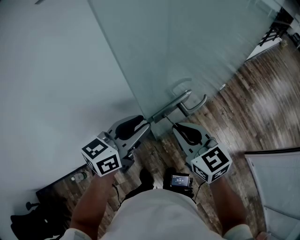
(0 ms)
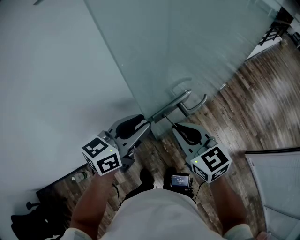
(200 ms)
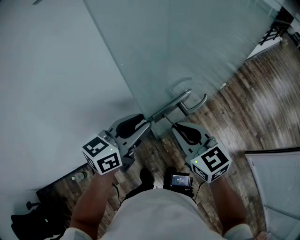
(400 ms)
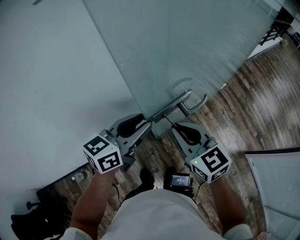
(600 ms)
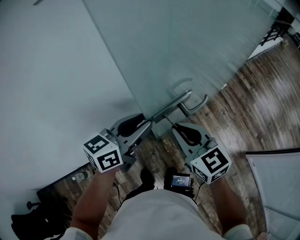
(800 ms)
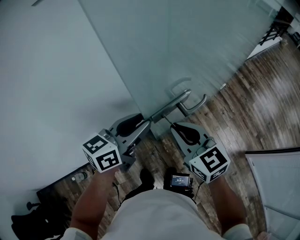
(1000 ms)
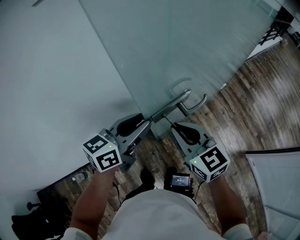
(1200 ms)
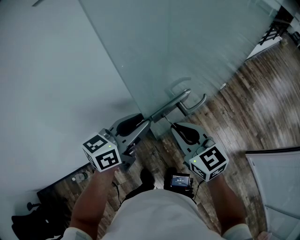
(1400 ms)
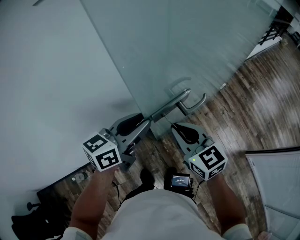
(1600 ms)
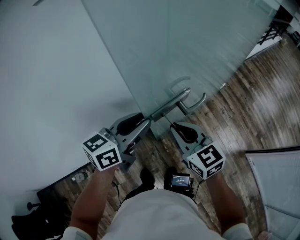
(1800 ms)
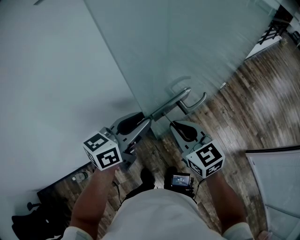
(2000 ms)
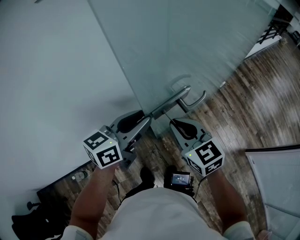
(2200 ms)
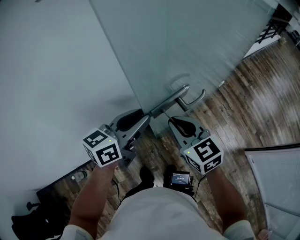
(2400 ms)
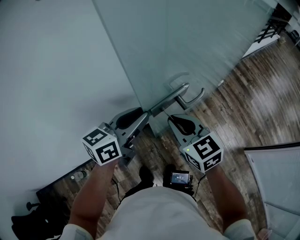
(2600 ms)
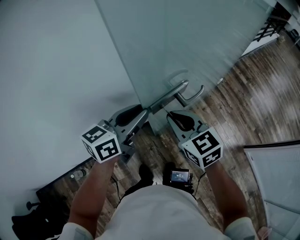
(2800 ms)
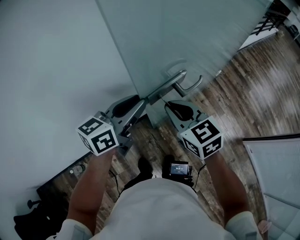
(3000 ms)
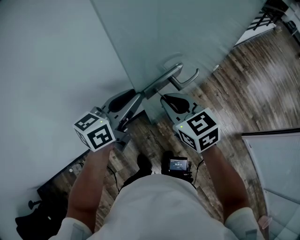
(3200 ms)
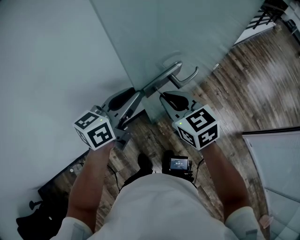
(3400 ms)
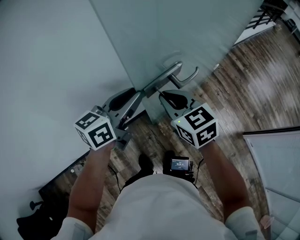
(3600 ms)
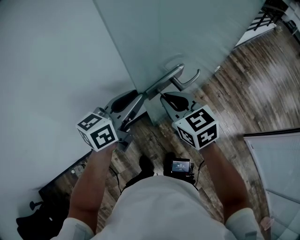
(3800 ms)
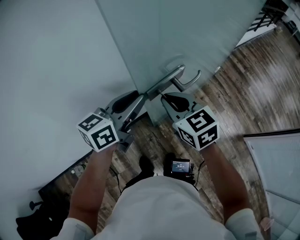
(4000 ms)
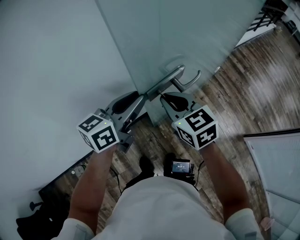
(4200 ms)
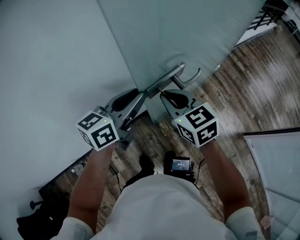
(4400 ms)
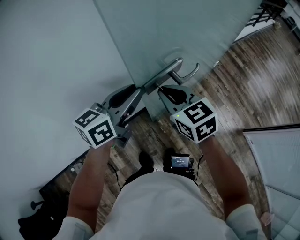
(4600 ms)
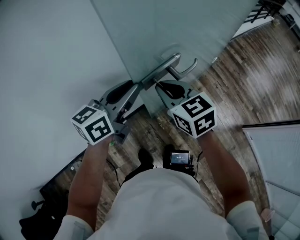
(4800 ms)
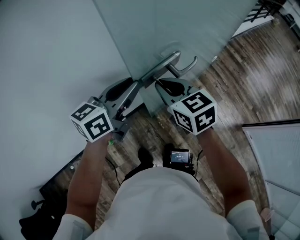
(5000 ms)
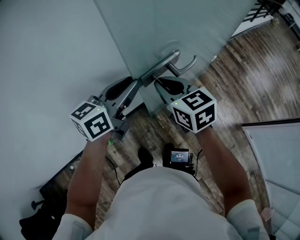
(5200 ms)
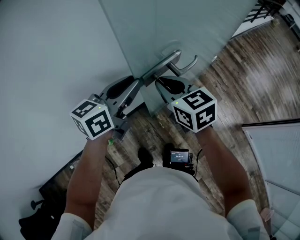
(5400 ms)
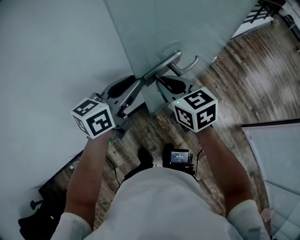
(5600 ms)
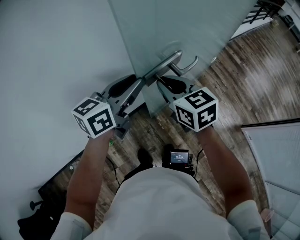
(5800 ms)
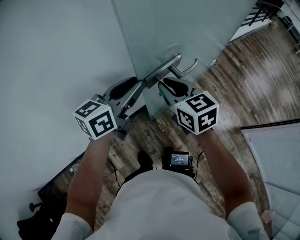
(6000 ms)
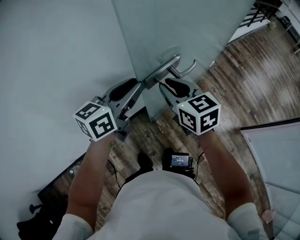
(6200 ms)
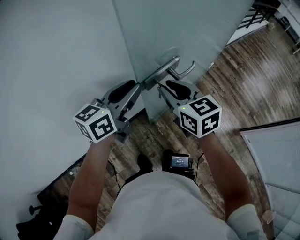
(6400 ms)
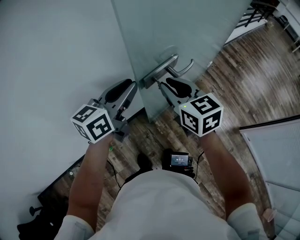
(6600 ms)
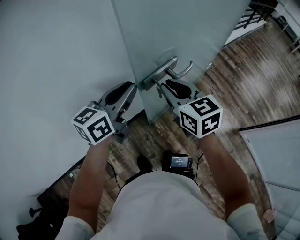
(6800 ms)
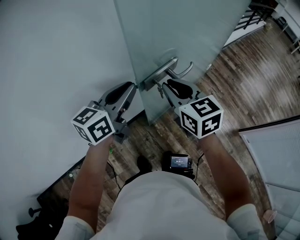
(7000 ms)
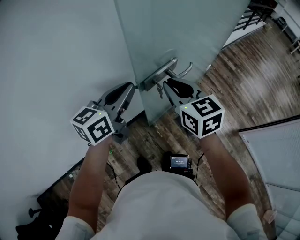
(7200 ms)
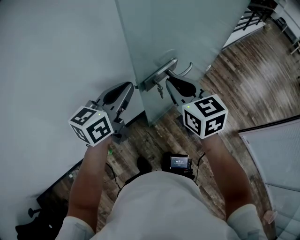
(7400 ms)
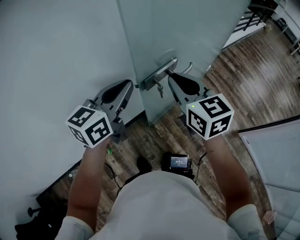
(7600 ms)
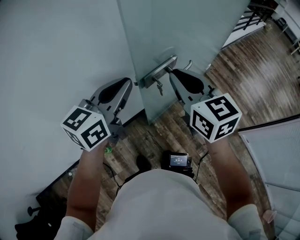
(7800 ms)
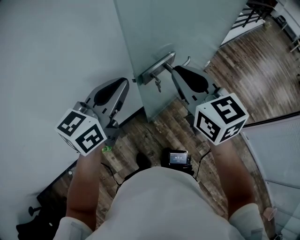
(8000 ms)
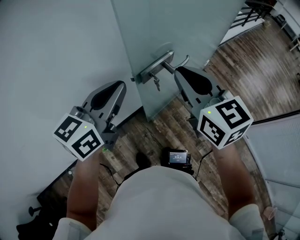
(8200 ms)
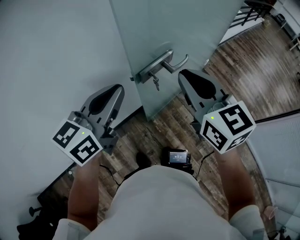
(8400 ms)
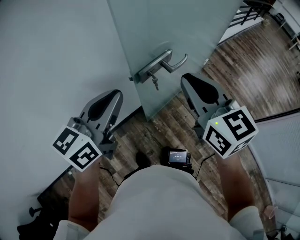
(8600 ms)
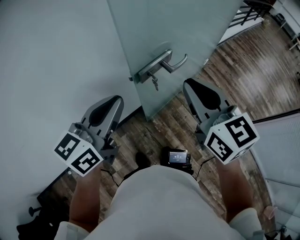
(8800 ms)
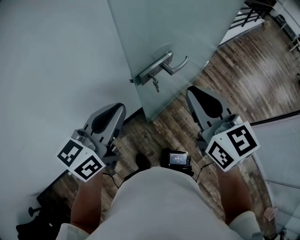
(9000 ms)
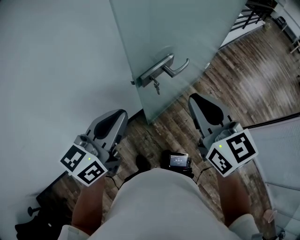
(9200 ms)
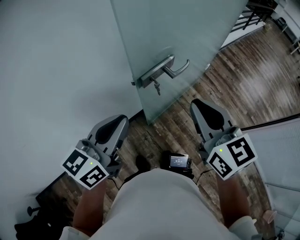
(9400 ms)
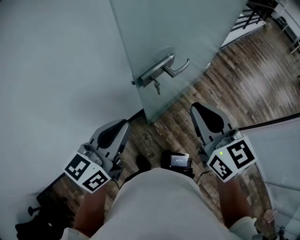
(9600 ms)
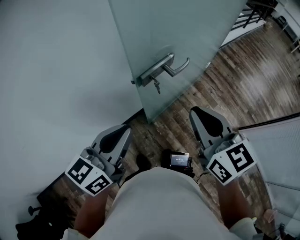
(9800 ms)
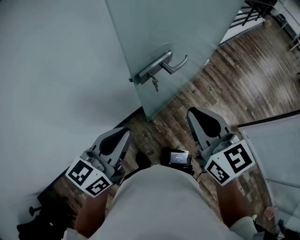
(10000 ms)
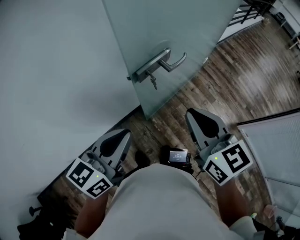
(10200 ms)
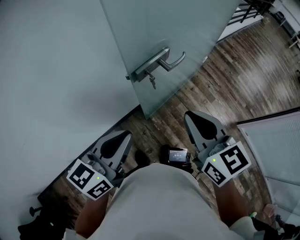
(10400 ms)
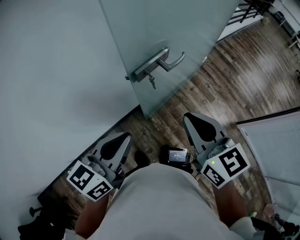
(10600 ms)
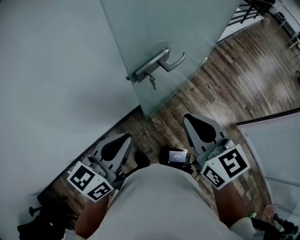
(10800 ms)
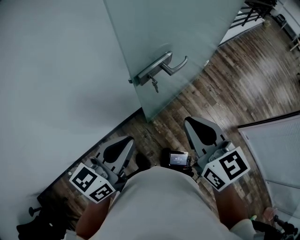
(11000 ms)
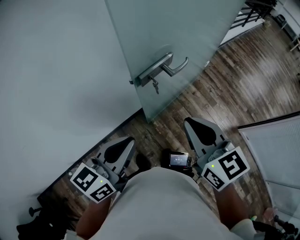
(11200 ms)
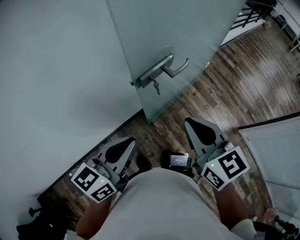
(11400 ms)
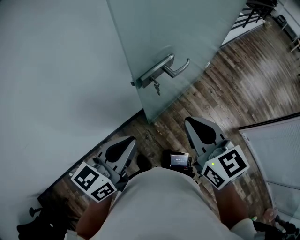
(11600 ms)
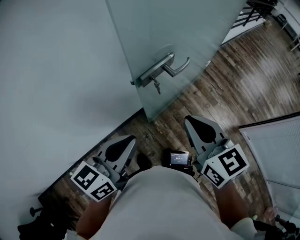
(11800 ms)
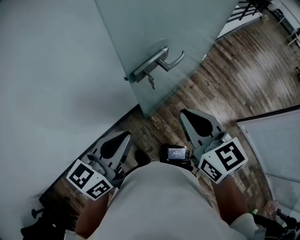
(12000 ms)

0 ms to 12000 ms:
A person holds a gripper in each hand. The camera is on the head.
0 ms to 6000 ms: The grippers stay close to where they were, moving slightly.
6000 ms to 7600 ms: The left gripper ends up some 5 cm from where it was. The right gripper moves upward, about 10 cm.
7600 ms to 9000 ms: The right gripper goes about 10 cm backward and to the right. Meanwhile the left gripper shifts about 10 cm backward.
9000 ms to 10400 ms: Both grippers travel together backward, roughly 5 cm.
10400 ms to 12000 ms: The grippers move only a little.

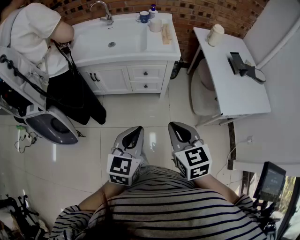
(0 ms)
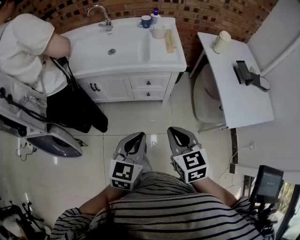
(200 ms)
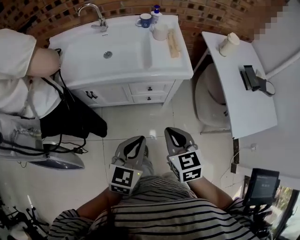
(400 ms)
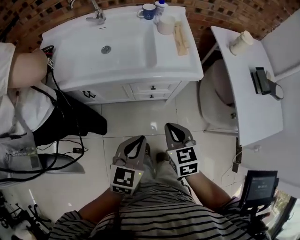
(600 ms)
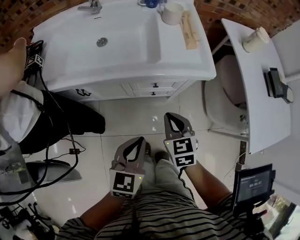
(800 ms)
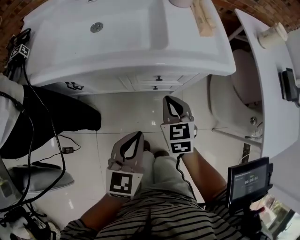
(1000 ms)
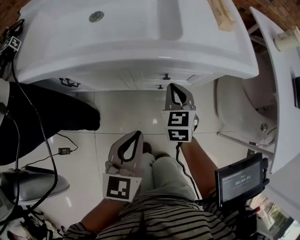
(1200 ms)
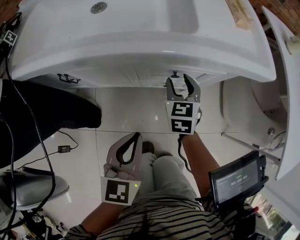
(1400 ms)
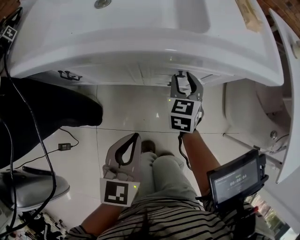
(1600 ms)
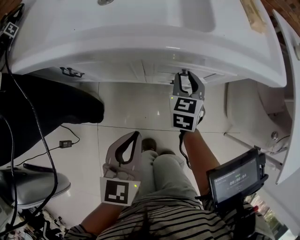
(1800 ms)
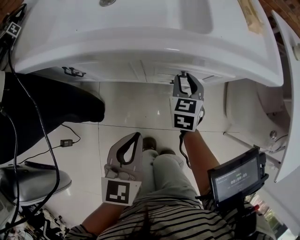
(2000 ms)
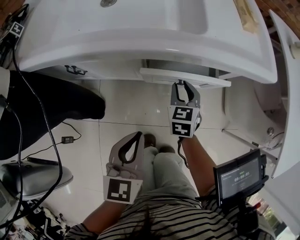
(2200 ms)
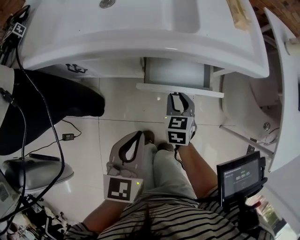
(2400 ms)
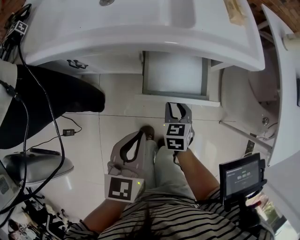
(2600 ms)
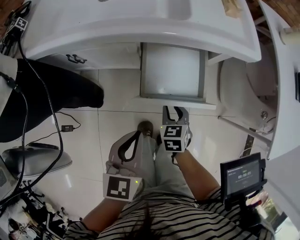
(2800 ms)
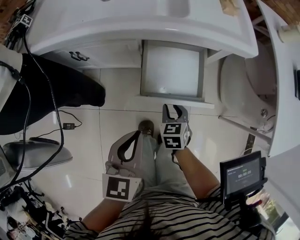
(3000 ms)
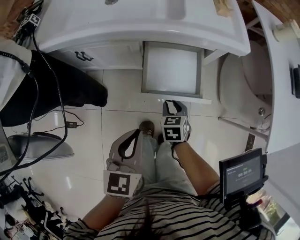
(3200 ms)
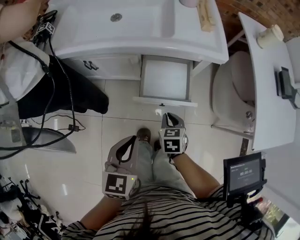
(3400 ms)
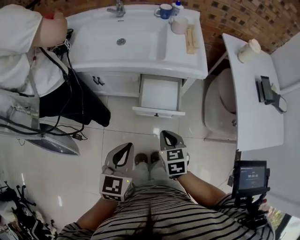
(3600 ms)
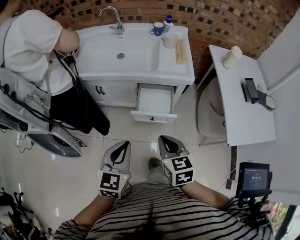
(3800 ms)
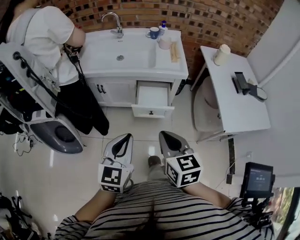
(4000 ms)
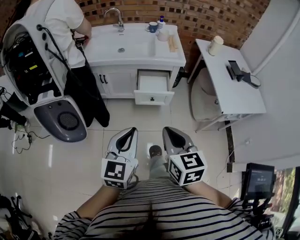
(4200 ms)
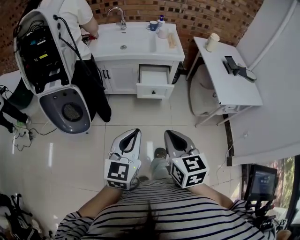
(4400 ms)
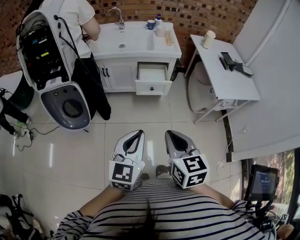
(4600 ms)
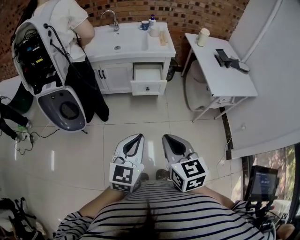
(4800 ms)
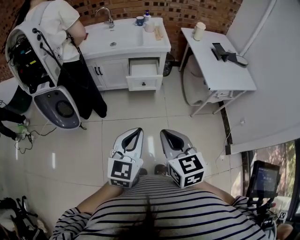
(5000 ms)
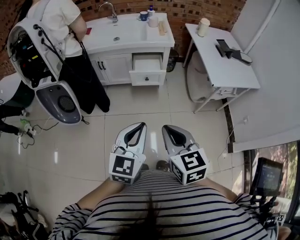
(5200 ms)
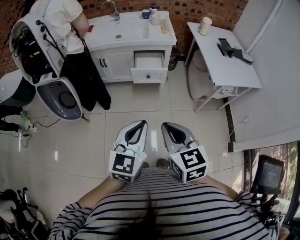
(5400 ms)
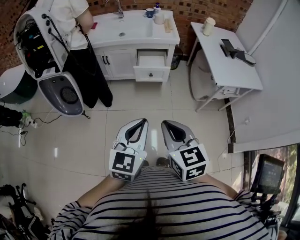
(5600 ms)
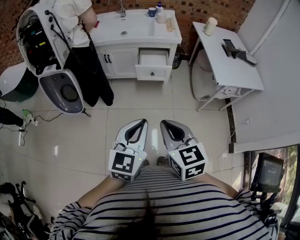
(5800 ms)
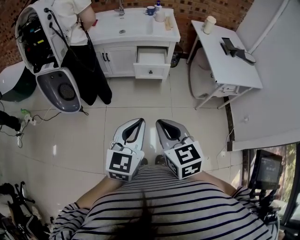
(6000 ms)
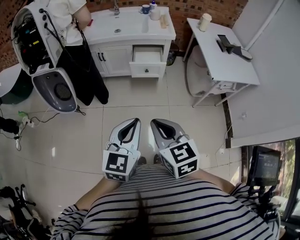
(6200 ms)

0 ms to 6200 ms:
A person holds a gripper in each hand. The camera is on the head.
0 ms to 1600 ms: The right gripper shifts about 60 cm forward and downward, swivels roughly 20 degrees, and opens up. Meanwhile the left gripper travels downward, forward and to the left by roughly 50 cm.
1600 ms to 3200 ms: The left gripper heads backward and upward, covering approximately 15 cm. Meanwhile the right gripper goes about 20 cm backward, and turns by some 20 degrees.
3200 ms to 4600 ms: The right gripper shifts some 70 cm upward and backward, tips its fingers upward by about 30 degrees, and closes its fingers. The left gripper heads backward and upward, covering approximately 50 cm, and swivels approximately 20 degrees.
4600 ms to 6200 ms: The left gripper changes place by roughly 5 cm.

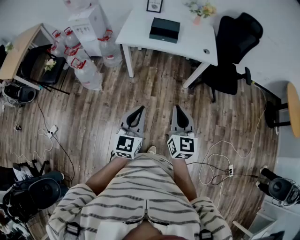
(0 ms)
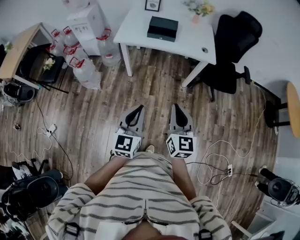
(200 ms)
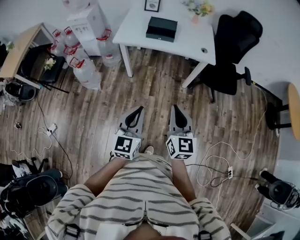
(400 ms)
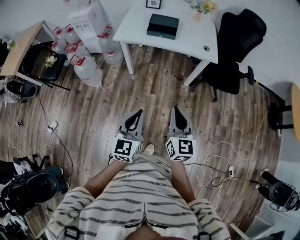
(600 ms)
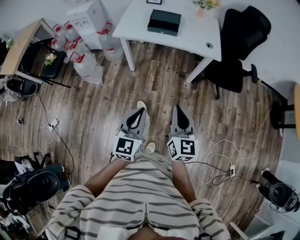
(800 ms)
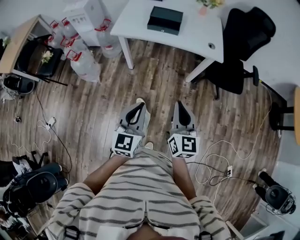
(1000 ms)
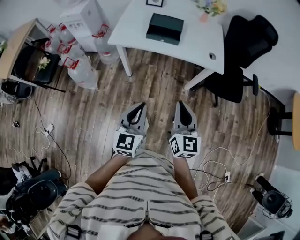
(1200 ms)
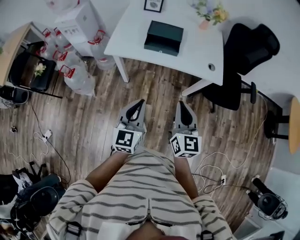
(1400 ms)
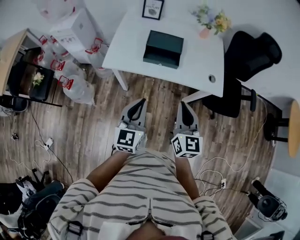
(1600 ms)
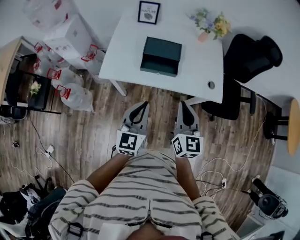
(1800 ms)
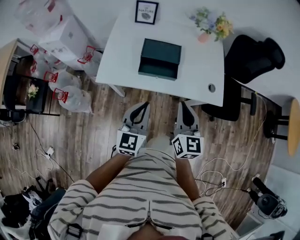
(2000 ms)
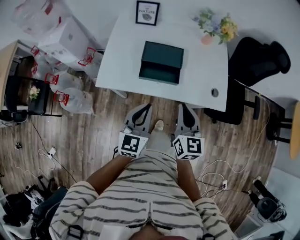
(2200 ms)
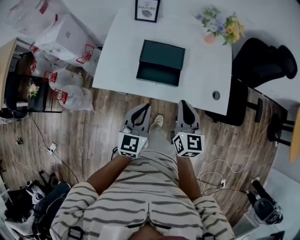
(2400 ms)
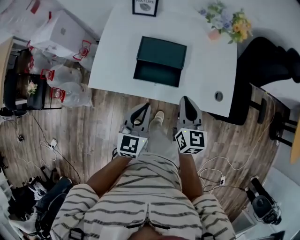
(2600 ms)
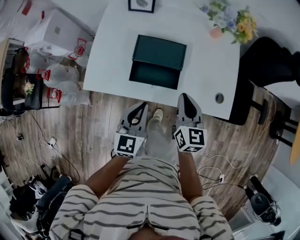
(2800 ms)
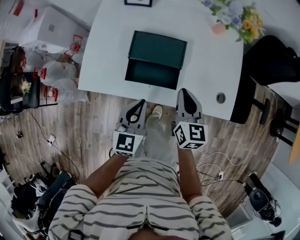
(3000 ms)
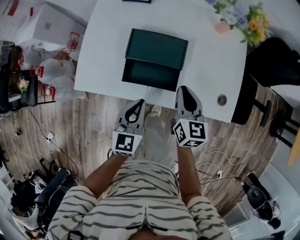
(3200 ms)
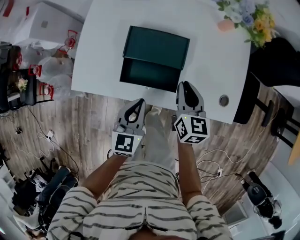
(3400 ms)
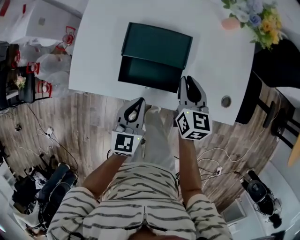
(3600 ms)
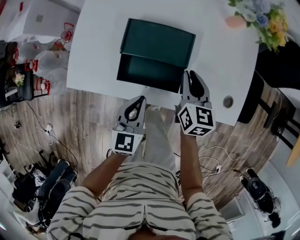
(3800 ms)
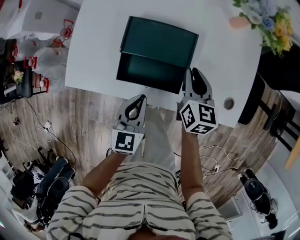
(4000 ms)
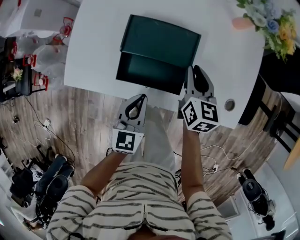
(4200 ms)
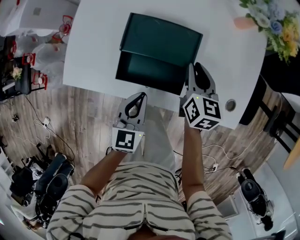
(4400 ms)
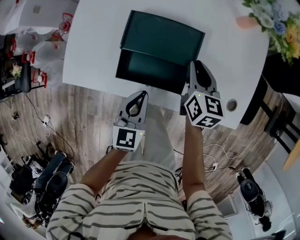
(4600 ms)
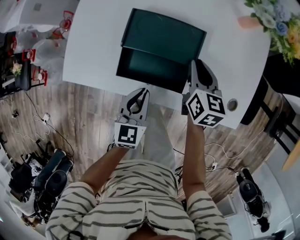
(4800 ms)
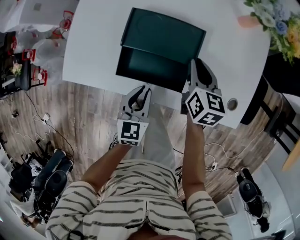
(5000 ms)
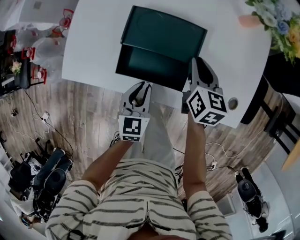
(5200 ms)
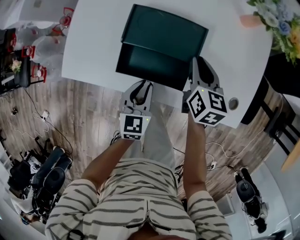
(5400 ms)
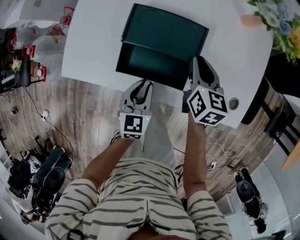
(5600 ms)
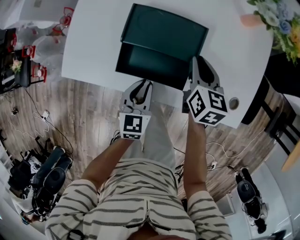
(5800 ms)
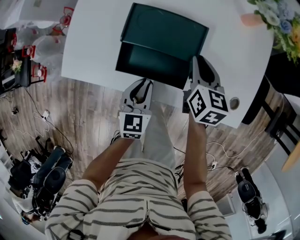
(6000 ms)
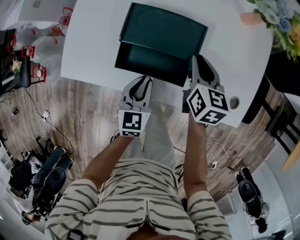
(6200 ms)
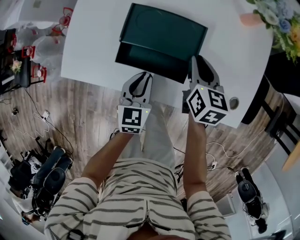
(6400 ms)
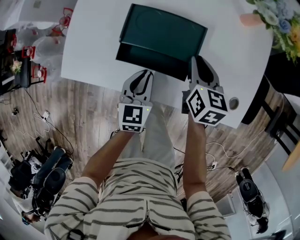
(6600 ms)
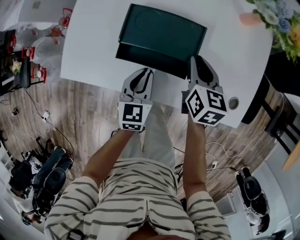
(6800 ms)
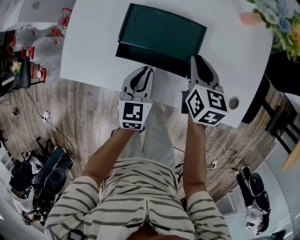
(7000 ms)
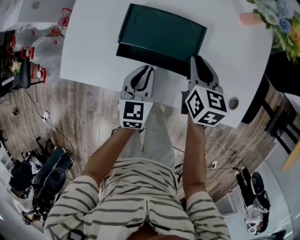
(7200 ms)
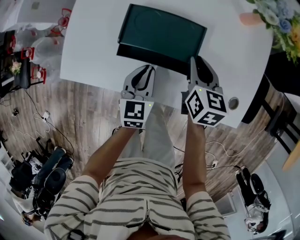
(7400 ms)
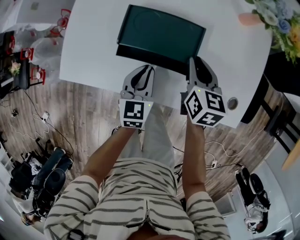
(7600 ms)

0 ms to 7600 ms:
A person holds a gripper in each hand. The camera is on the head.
0 ms to 1600 ms: Both grippers travel together forward, about 35 cm.
1600 ms to 3000 ms: Both grippers move forward and downward, some 30 cm.
3000 ms to 4600 ms: The left gripper is displaced downward by roughly 10 cm. The right gripper is displaced forward and downward by approximately 15 cm.
4600 ms to 6000 ms: The grippers stay close to where they were, moving slightly.
6000 ms to 7600 ms: The left gripper moves forward, some 5 cm.
